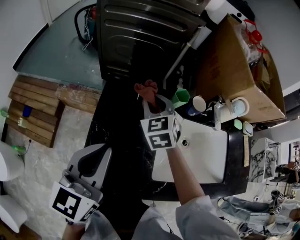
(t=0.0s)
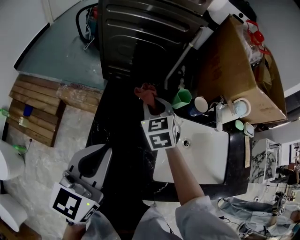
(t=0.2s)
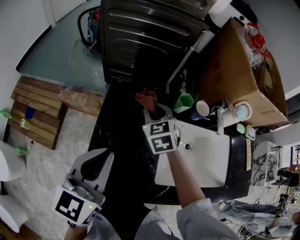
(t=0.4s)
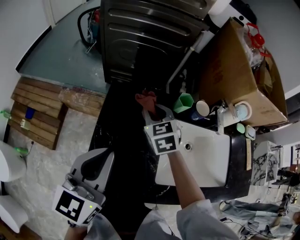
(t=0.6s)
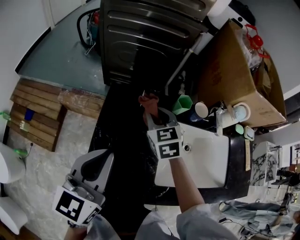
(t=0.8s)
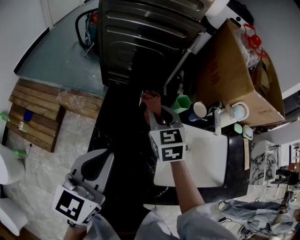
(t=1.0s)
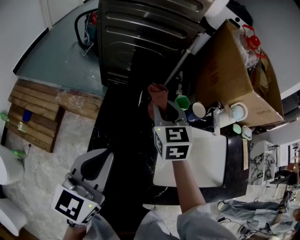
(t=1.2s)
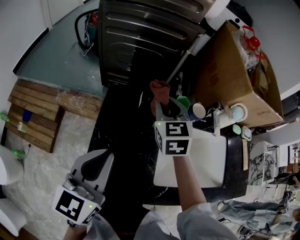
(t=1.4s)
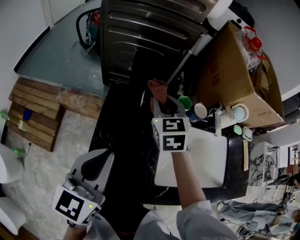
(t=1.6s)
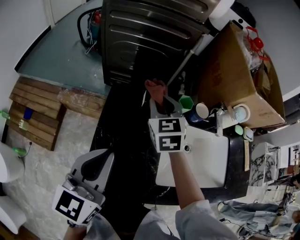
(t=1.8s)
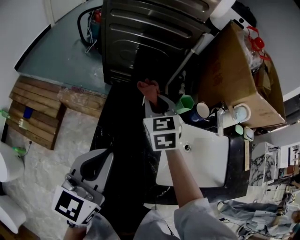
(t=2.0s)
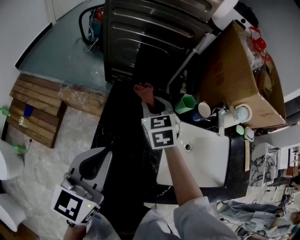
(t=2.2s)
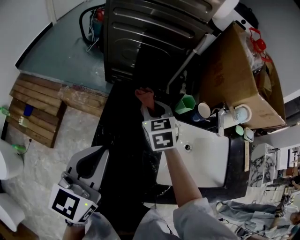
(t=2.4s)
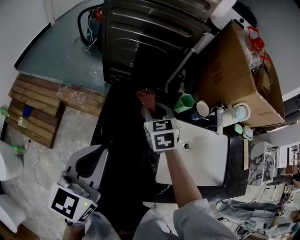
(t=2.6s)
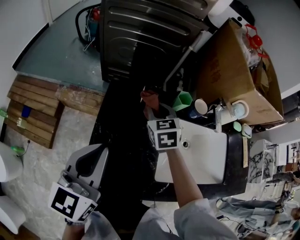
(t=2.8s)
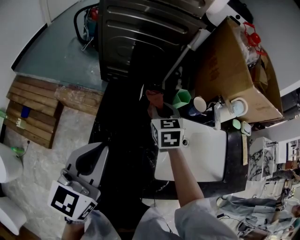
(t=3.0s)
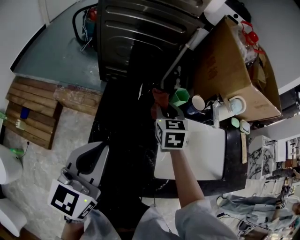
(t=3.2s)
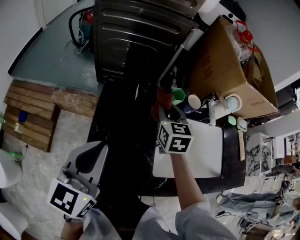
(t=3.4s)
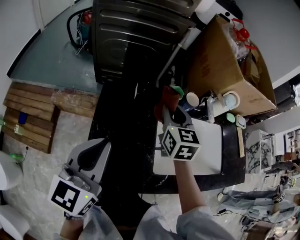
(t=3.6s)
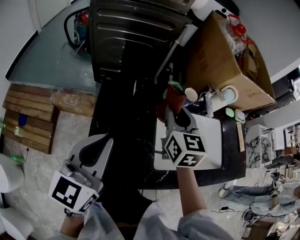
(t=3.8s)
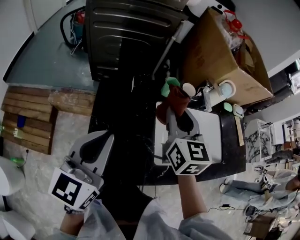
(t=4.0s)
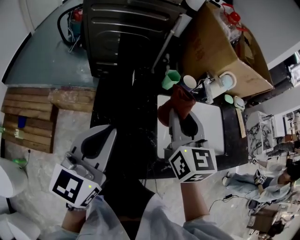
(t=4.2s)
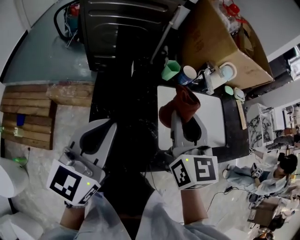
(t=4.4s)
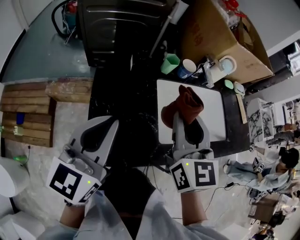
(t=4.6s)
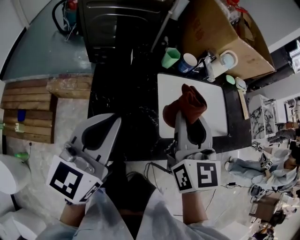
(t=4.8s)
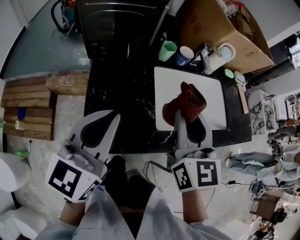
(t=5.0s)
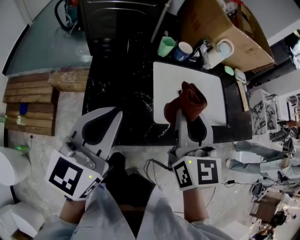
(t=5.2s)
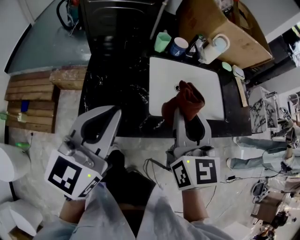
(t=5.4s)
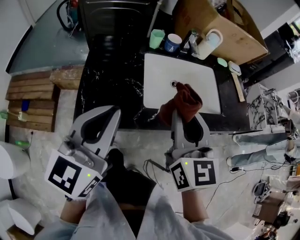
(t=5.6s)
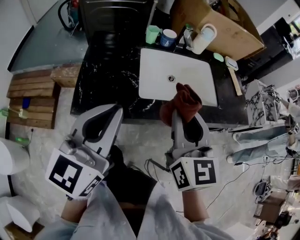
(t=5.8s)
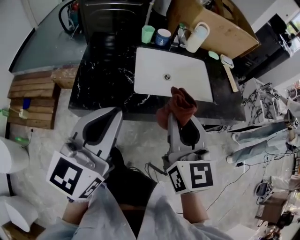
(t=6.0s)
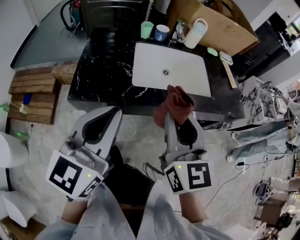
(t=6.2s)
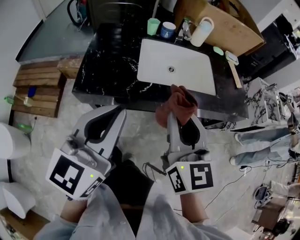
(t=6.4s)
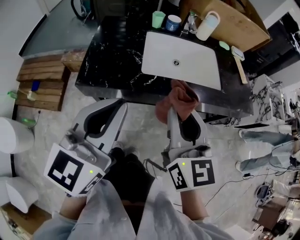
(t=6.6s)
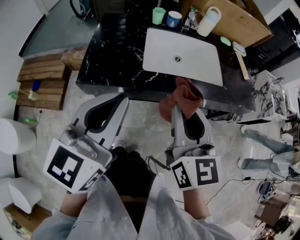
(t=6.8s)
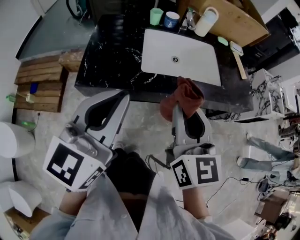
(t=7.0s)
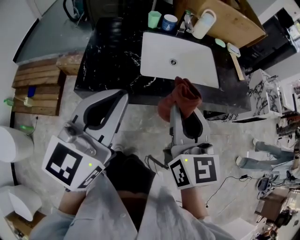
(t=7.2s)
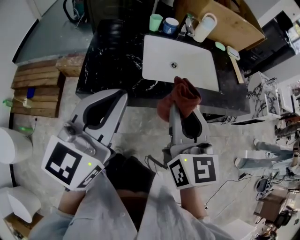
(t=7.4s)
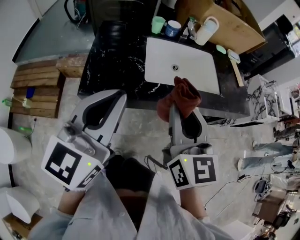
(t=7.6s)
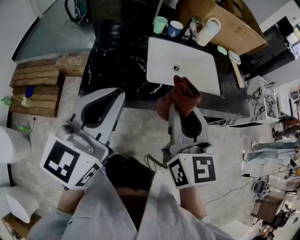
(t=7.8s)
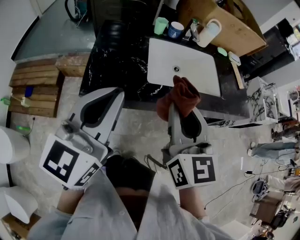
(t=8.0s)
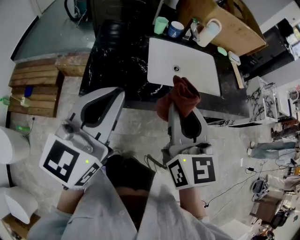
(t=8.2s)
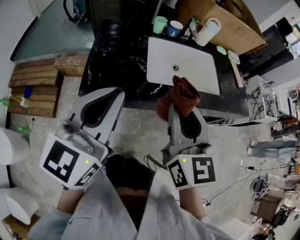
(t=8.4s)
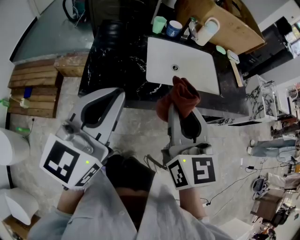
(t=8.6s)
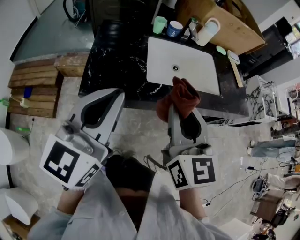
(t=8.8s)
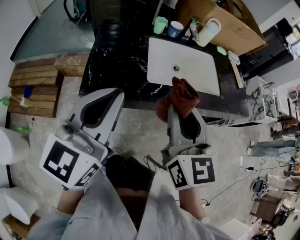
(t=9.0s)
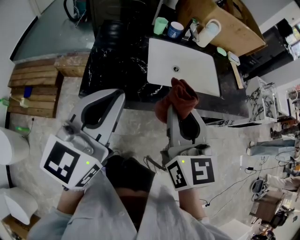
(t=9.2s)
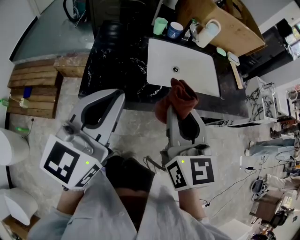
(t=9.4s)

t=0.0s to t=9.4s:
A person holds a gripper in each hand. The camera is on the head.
t=0.0s to t=1.6s: There are only small adjustments of the grippers.
t=1.6s to t=3.2s: The right gripper heads downward, covering approximately 5 cm.
t=3.2s to t=4.8s: The left gripper ends up some 5 cm from where it was. Meanwhile the right gripper moves backward and upward, about 25 cm, and rotates about 30 degrees.
t=4.8s to t=6.2s: The grippers both shift backward and to the right by approximately 30 cm.
t=6.2s to t=7.8s: The two grippers go about 5 cm to the left.
t=7.8s to t=9.4s: Neither gripper changes place.

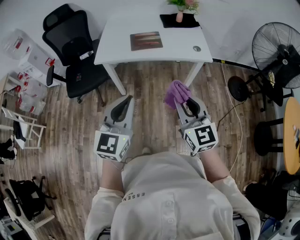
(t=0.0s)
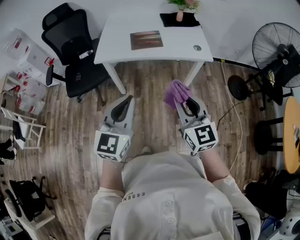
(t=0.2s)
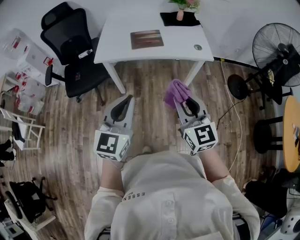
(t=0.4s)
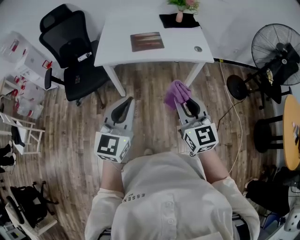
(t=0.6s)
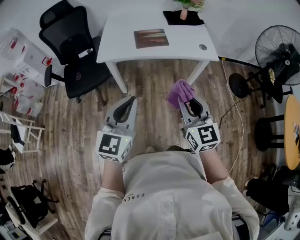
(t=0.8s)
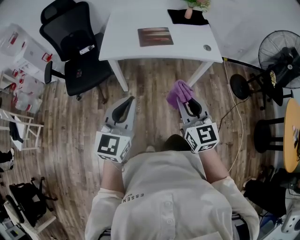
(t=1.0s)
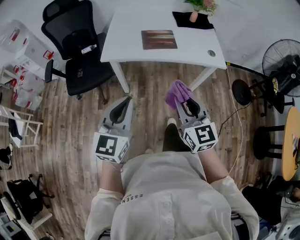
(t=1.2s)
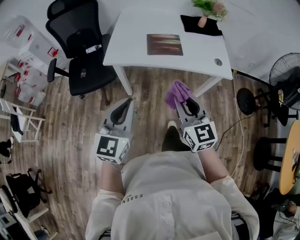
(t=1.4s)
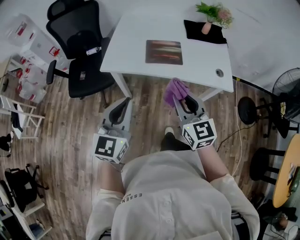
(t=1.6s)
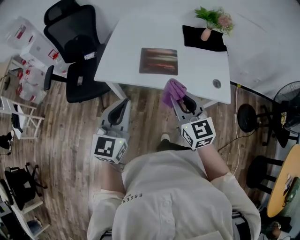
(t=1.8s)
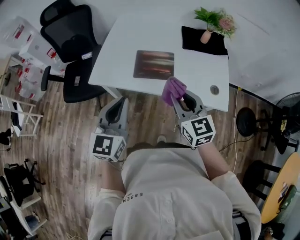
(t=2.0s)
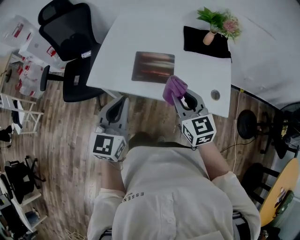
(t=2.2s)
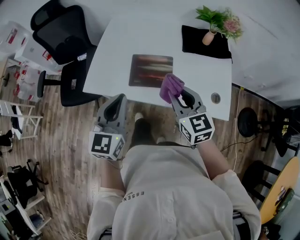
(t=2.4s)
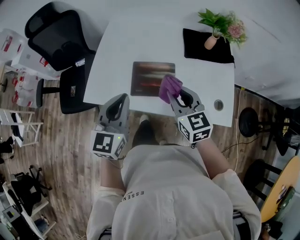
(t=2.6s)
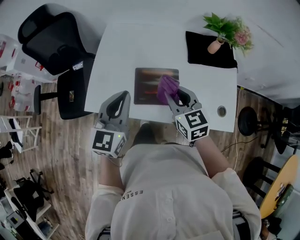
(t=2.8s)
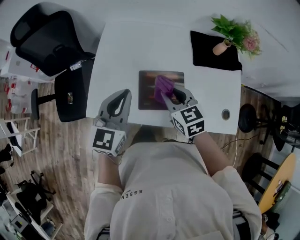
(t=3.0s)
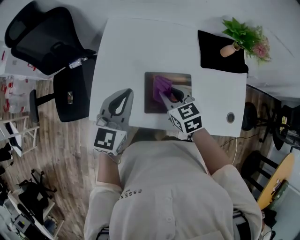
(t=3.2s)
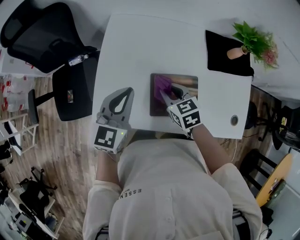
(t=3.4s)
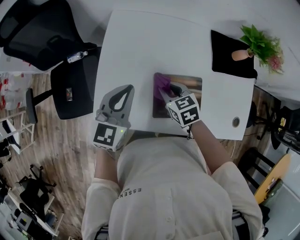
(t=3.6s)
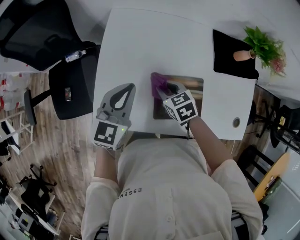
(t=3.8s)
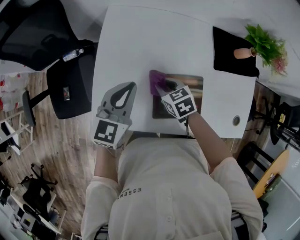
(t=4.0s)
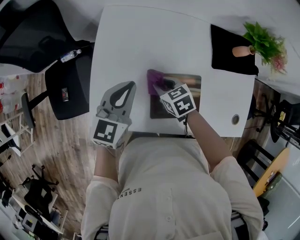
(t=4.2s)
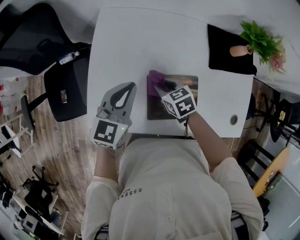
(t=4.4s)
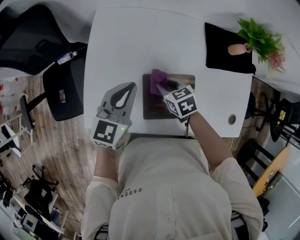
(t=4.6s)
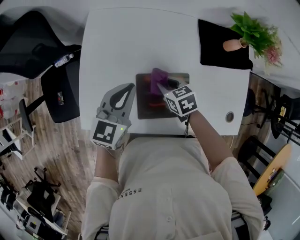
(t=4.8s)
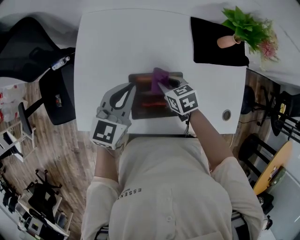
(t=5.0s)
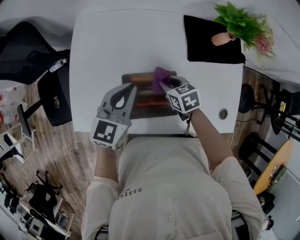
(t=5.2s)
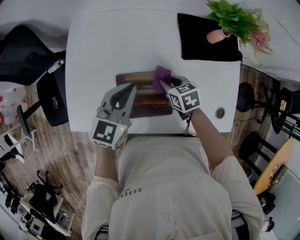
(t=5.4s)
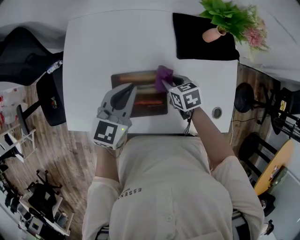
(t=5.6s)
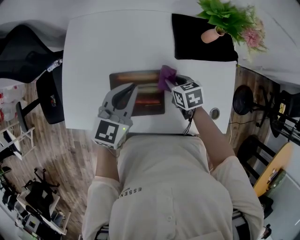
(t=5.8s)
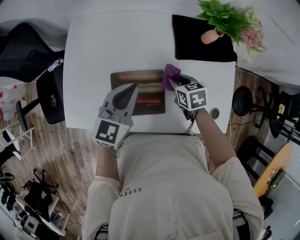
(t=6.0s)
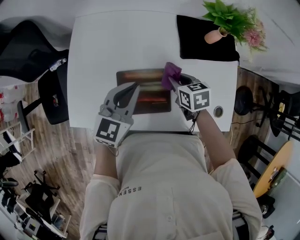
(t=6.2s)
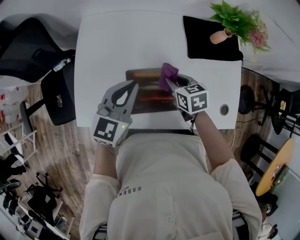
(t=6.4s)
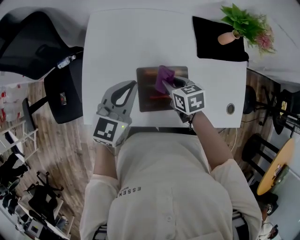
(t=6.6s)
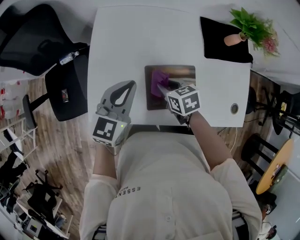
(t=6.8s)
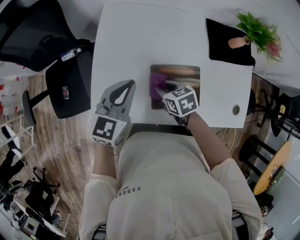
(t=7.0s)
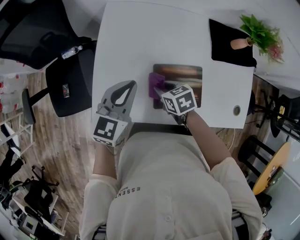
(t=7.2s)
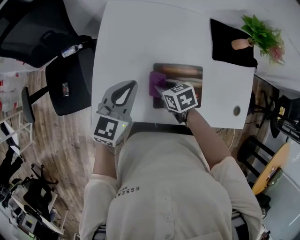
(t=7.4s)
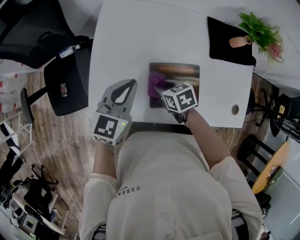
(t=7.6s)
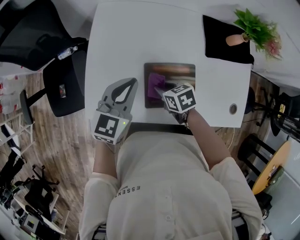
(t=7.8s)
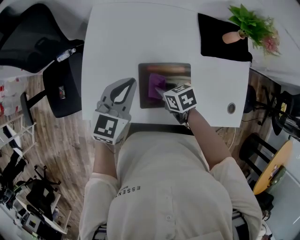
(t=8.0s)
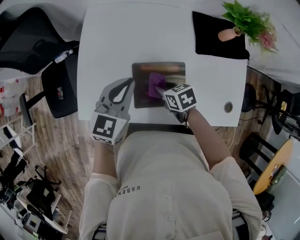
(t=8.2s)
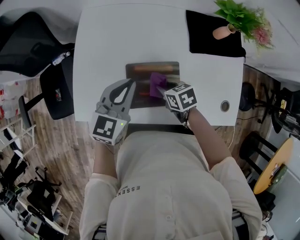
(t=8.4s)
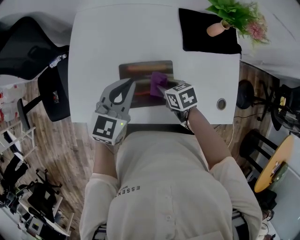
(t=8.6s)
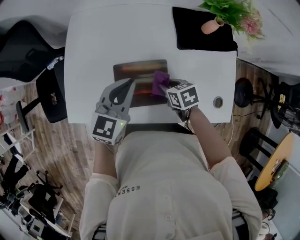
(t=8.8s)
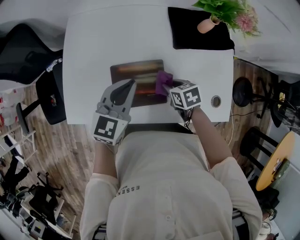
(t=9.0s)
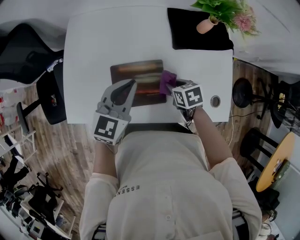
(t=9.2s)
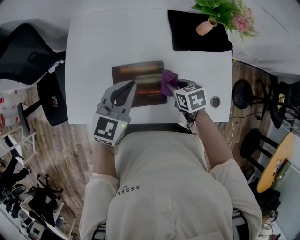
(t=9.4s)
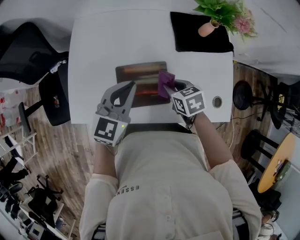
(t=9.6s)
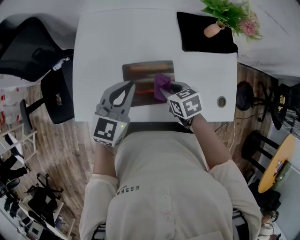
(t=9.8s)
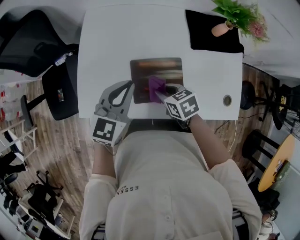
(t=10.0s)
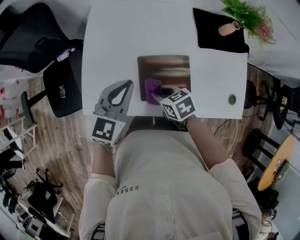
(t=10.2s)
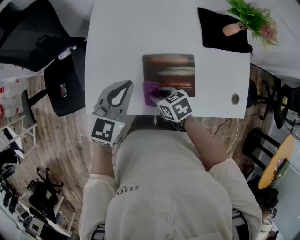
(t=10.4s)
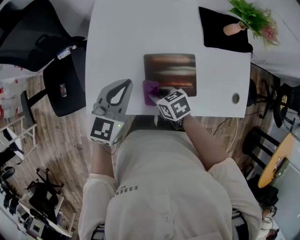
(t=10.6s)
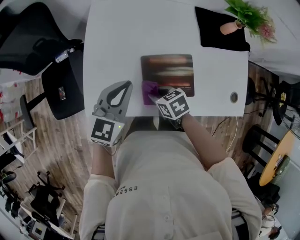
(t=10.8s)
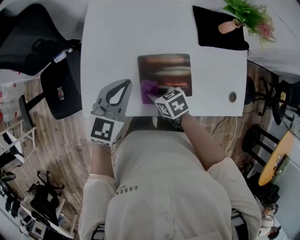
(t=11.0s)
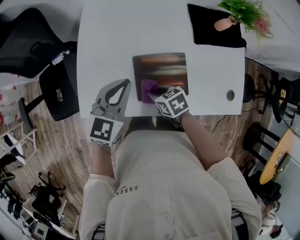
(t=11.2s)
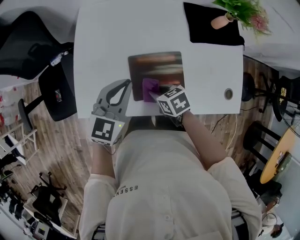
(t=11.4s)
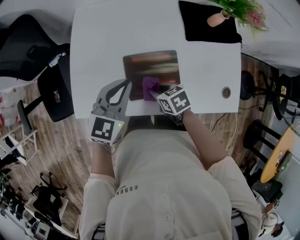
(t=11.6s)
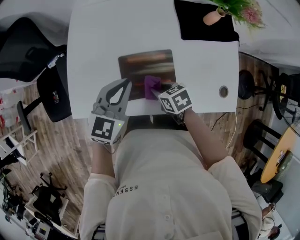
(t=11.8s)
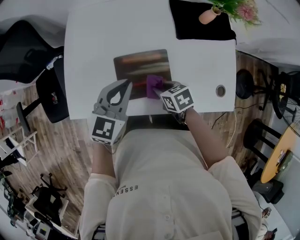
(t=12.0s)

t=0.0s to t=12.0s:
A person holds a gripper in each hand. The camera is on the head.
t=0.0s to t=1.6s: Both grippers move forward, approximately 20 cm.
t=1.6s to t=3.0s: The grippers both shift forward by approximately 40 cm. The right gripper turns by roughly 20 degrees.
t=3.0s to t=4.4s: The left gripper is displaced forward and downward by some 15 cm, while the right gripper travels downward and forward by roughly 20 cm, and swivels about 20 degrees.
t=4.4s to t=6.0s: Both grippers travel together to the right, some 20 cm.
t=6.0s to t=7.6s: The grippers both shift to the left by approximately 20 cm.
t=7.6s to t=9.0s: The two grippers go about 20 cm to the right.
t=9.0s to t=10.4s: Both grippers travel together to the left, approximately 20 cm.
t=10.4s to t=12.0s: The grippers both shift to the right by approximately 15 cm.

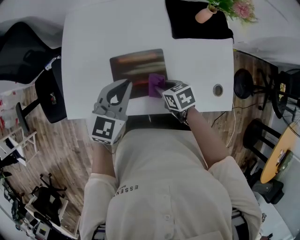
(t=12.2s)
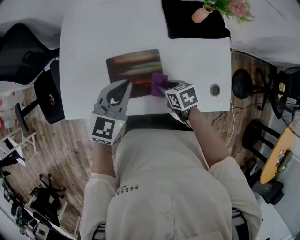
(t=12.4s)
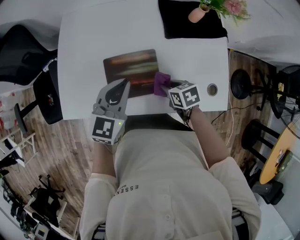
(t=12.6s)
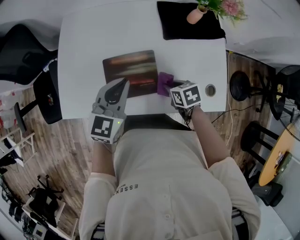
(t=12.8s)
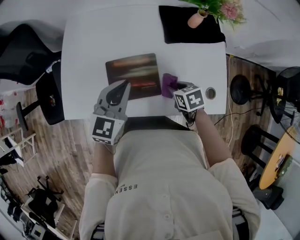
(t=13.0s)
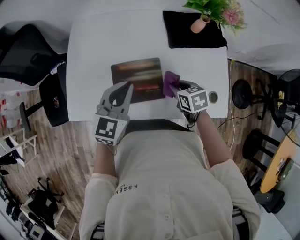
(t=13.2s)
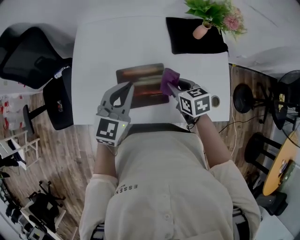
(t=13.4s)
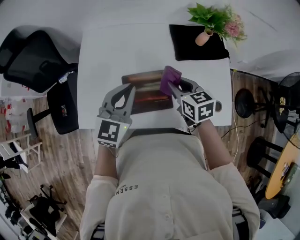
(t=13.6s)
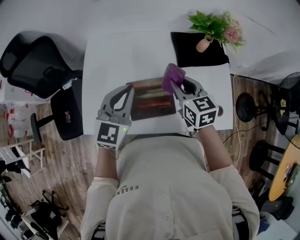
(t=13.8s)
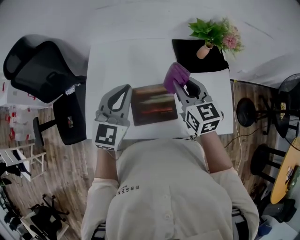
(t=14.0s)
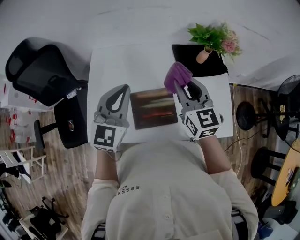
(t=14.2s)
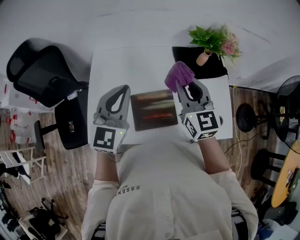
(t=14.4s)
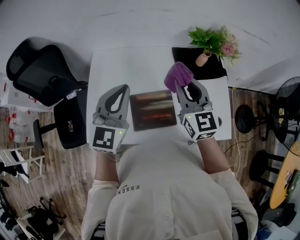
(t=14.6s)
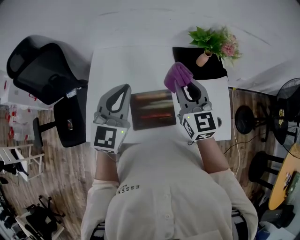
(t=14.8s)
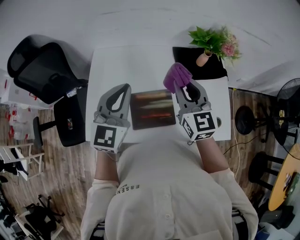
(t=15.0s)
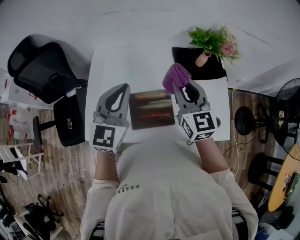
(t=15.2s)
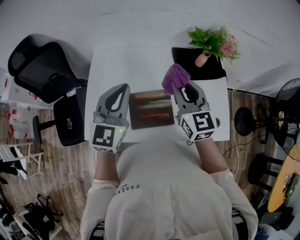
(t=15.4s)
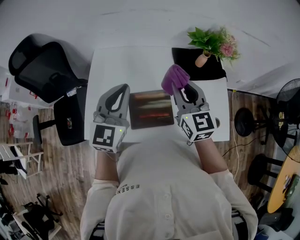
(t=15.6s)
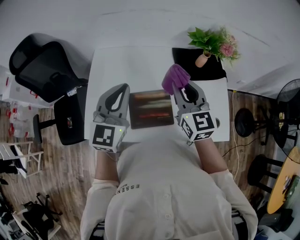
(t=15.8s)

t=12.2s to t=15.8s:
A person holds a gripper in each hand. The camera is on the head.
t=12.2s to t=14.0s: The left gripper goes roughly 15 cm upward and forward; the right gripper heads upward, covering about 25 cm, and tips its fingers upward by roughly 40 degrees.
t=14.0s to t=15.8s: The grippers move only a little.
